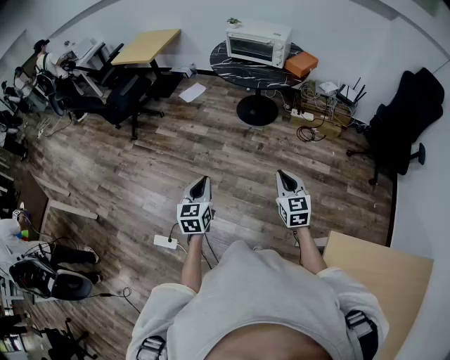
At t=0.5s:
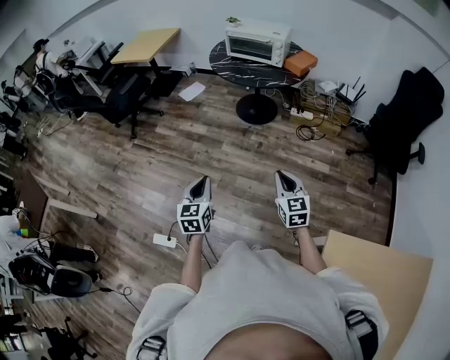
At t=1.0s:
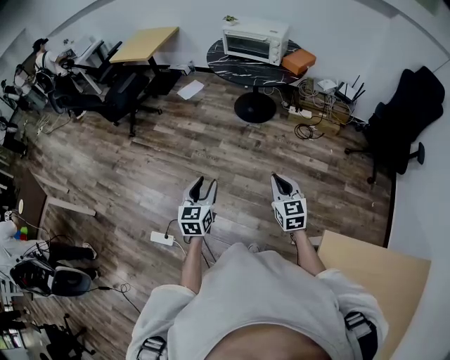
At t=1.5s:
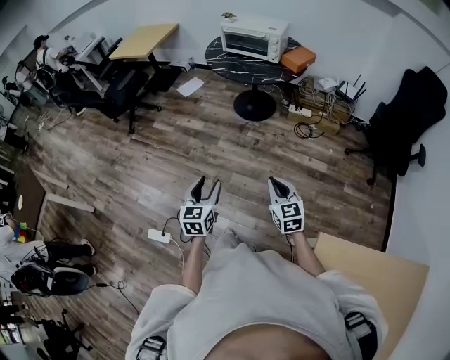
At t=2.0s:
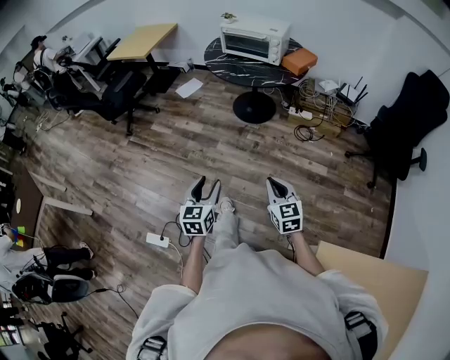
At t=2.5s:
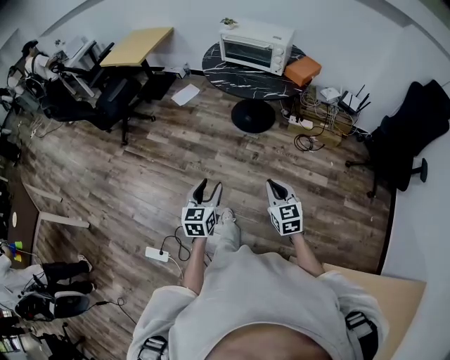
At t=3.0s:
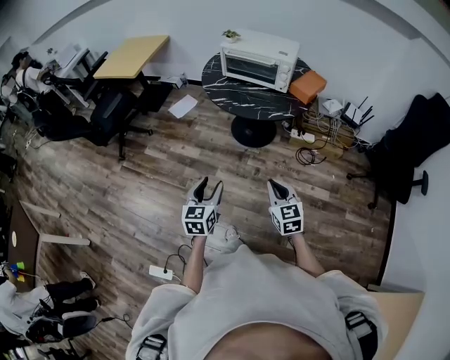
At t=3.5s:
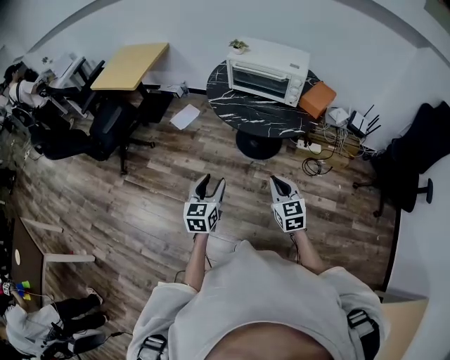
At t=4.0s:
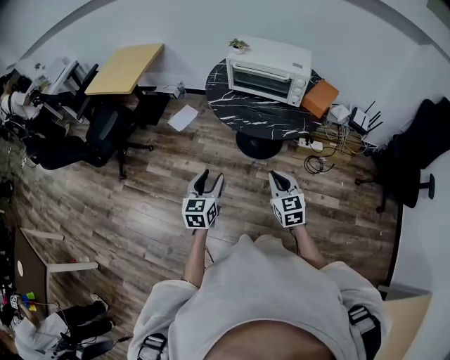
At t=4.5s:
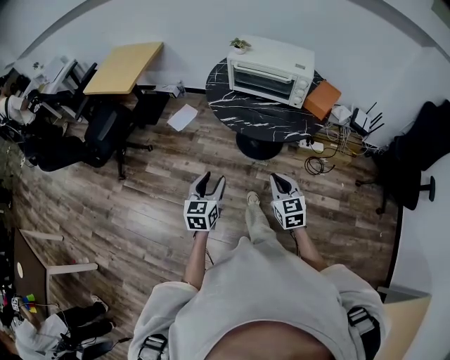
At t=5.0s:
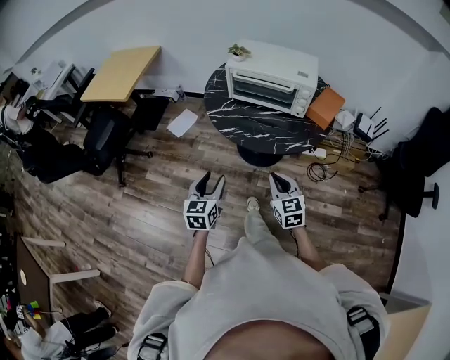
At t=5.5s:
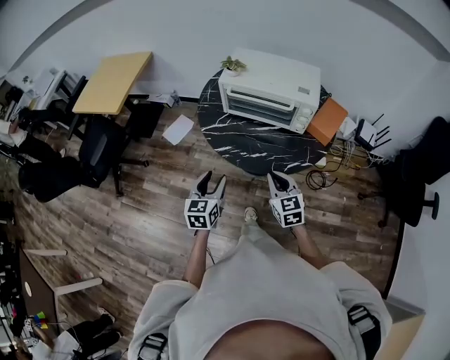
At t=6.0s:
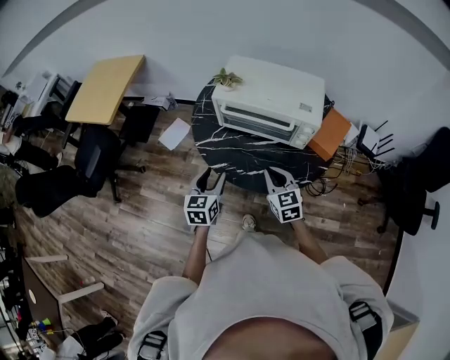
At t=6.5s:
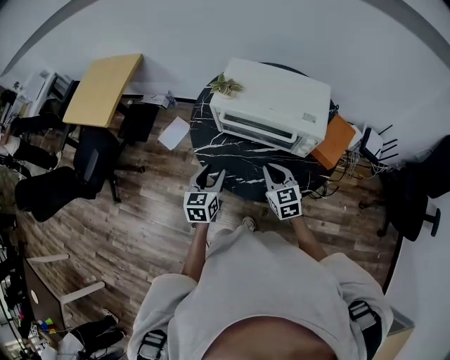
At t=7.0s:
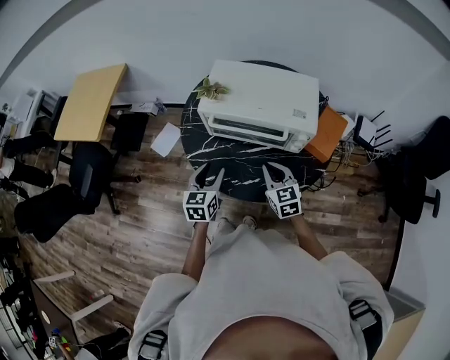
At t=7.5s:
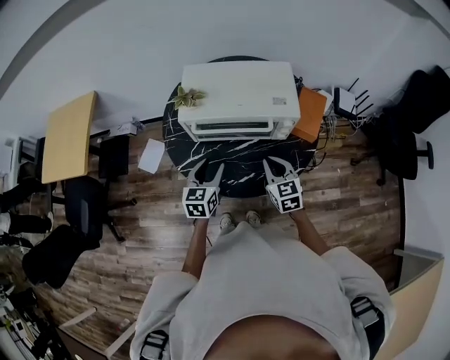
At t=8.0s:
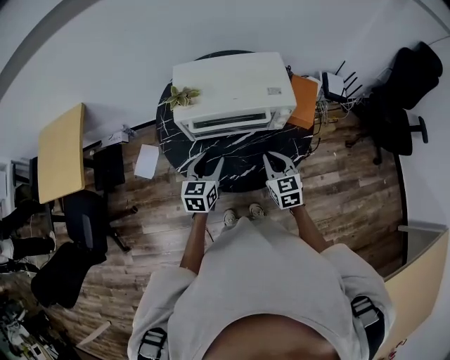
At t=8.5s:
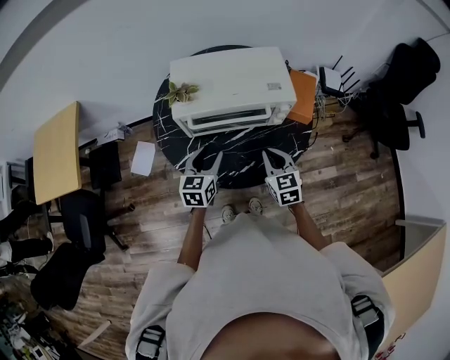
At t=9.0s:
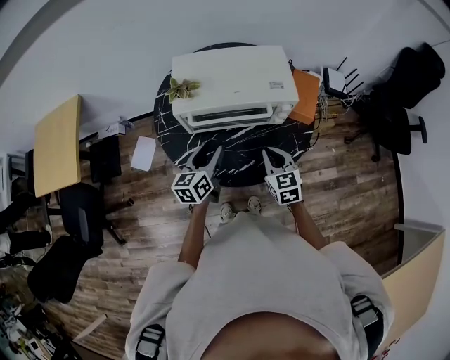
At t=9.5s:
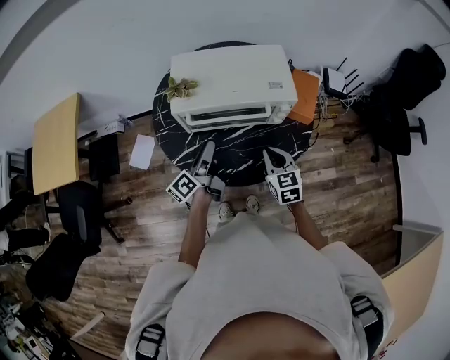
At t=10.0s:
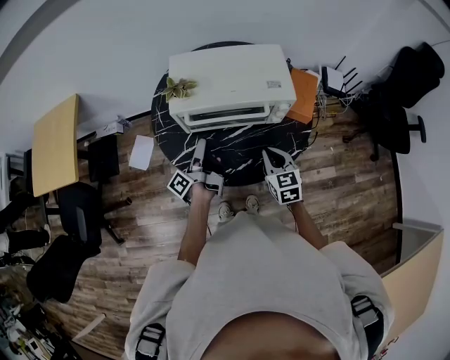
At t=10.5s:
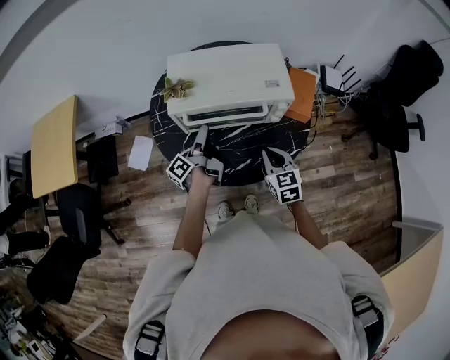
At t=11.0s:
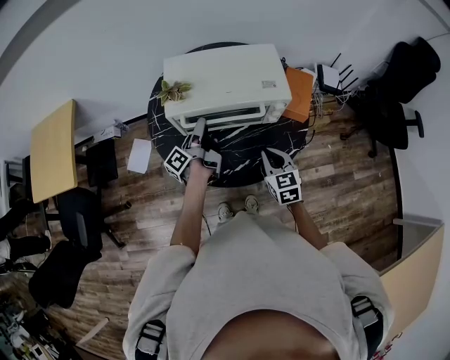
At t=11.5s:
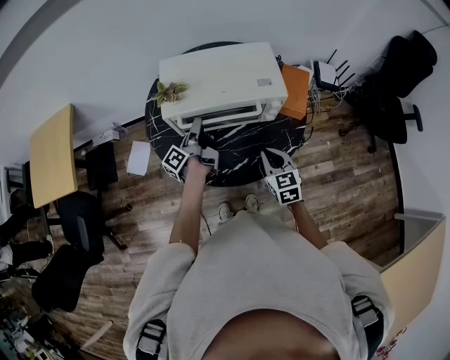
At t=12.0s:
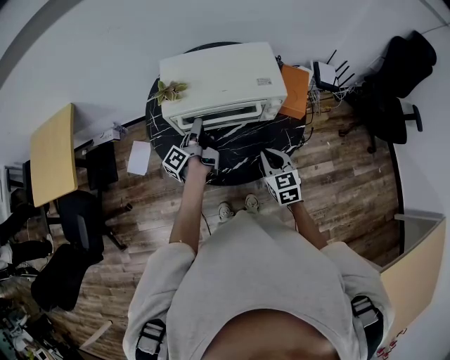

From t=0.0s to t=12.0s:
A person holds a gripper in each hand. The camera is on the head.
From t=0.0s to t=2.0s: The left gripper goes some 10 cm to the right, and opens its fingers. Meanwhile the right gripper shifts by some 5 cm.
From t=2.0s to t=4.0s: The pair of grippers is taken forward, about 40 cm.
From t=4.0s to t=6.0s: Both grippers travel together forward, about 30 cm.
From t=6.0s to t=8.0s: The right gripper ends up approximately 5 cm from where it was, and swivels approximately 30 degrees, while the left gripper changes place by approximately 15 cm, and turns by some 30 degrees.
From t=8.0s to t=10.0s: The left gripper twists roughly 80 degrees counterclockwise, seen from behind.
From t=10.0s to t=12.0s: The left gripper moves forward, about 5 cm, and closes.

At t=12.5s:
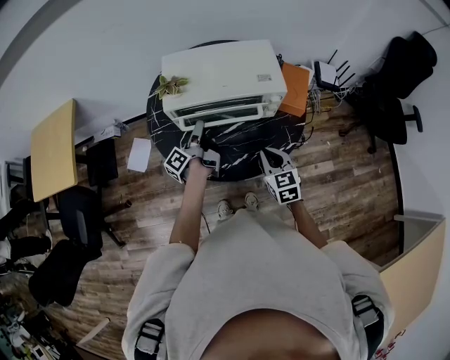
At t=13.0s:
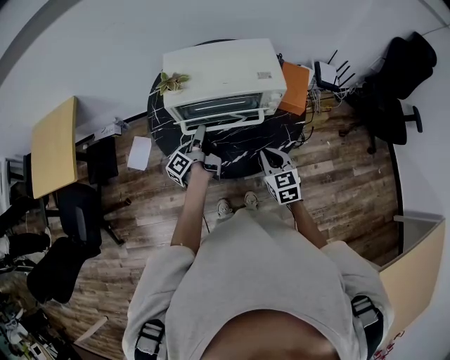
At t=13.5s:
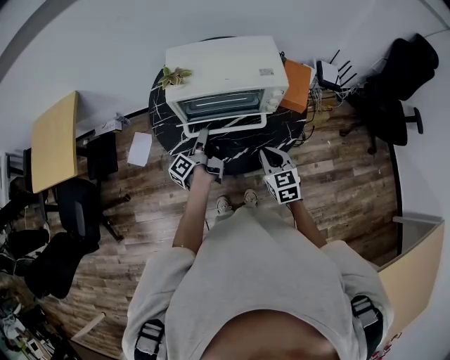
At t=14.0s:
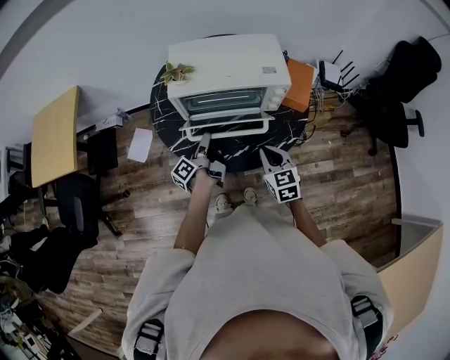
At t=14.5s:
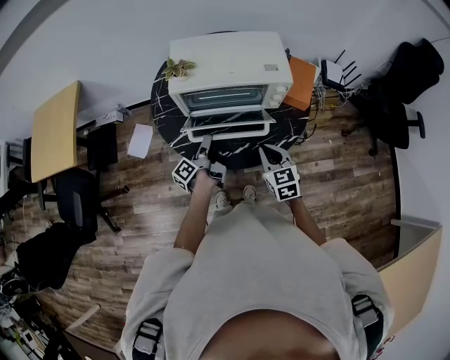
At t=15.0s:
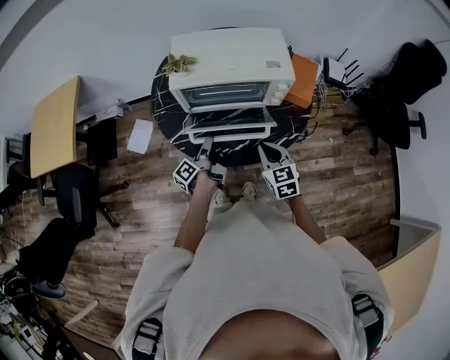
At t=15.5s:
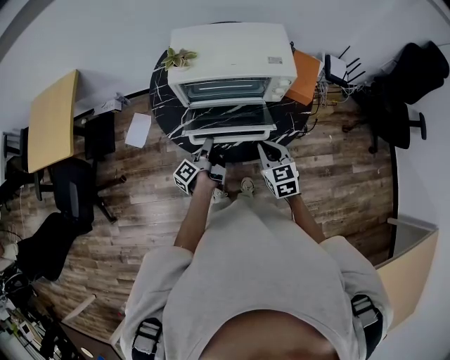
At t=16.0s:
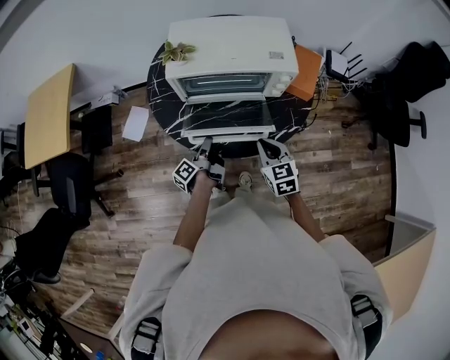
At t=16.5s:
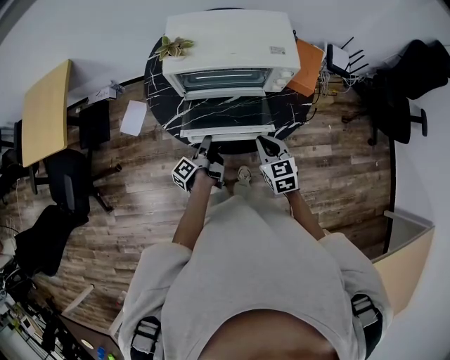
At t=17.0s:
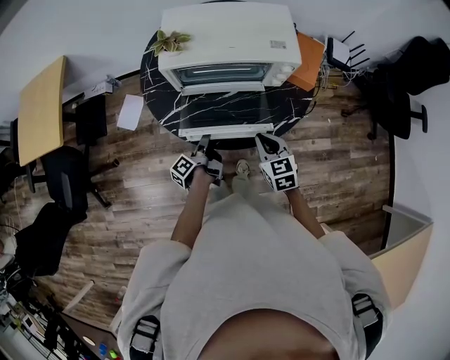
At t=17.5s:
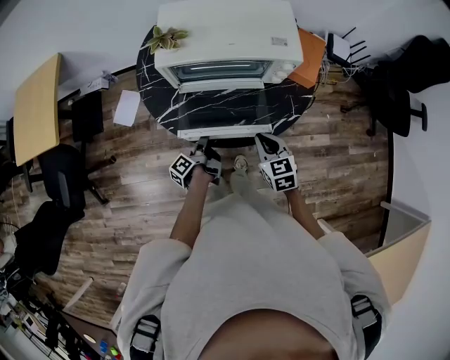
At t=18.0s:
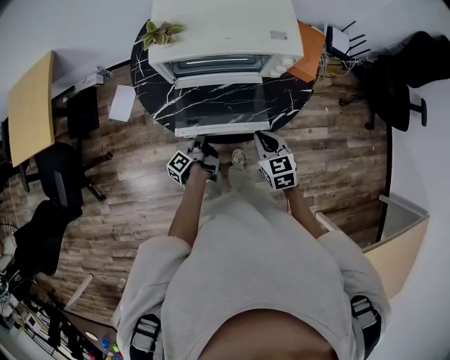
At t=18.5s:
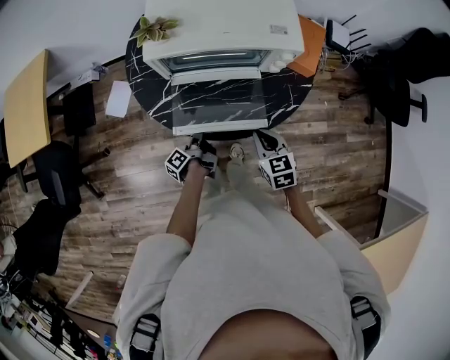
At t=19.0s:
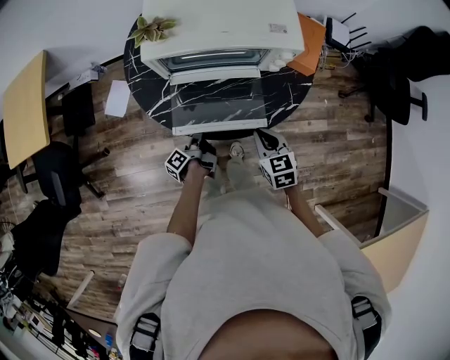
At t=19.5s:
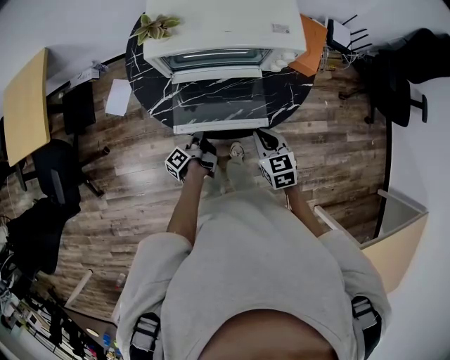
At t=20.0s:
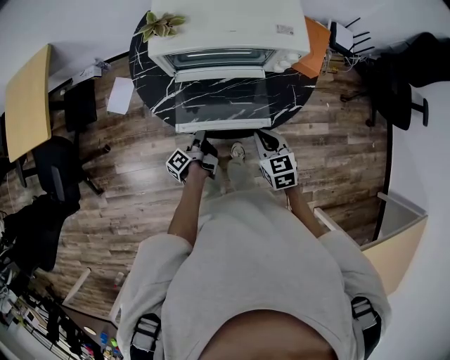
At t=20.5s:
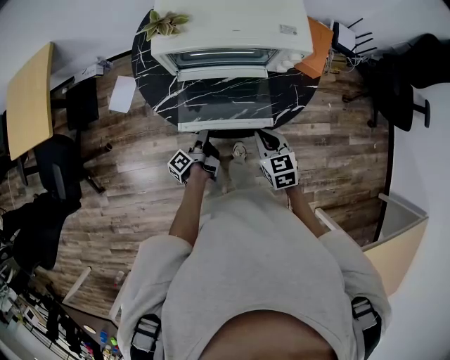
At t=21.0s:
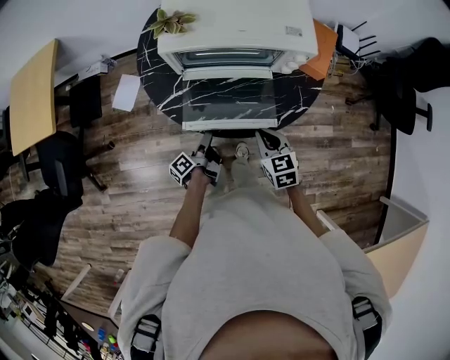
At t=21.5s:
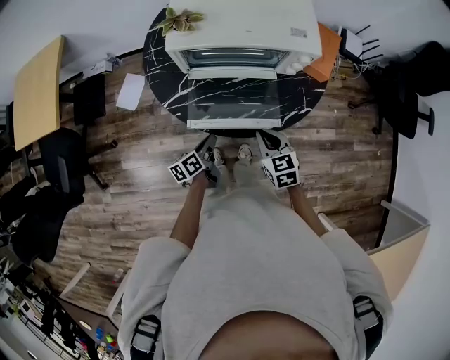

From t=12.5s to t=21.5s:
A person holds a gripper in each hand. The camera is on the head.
From t=12.5s to t=14.5s: The left gripper shifts about 10 cm backward and downward.
From t=14.5s to t=17.0s: The left gripper shifts approximately 10 cm downward and backward.
From t=17.0s to t=19.5s: The left gripper heads downward, covering about 5 cm.
From t=19.5s to t=21.5s: The left gripper rotates about 40 degrees.

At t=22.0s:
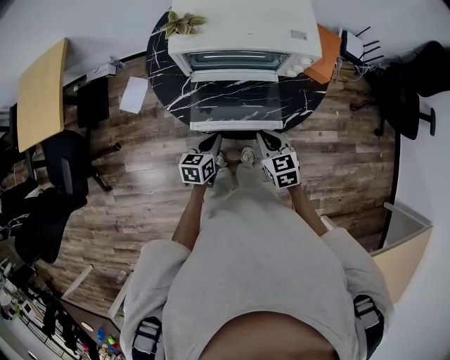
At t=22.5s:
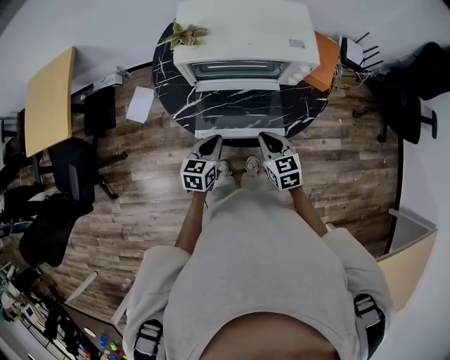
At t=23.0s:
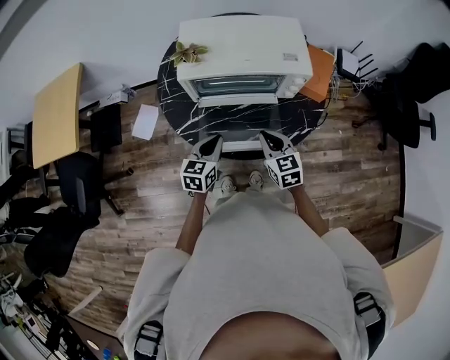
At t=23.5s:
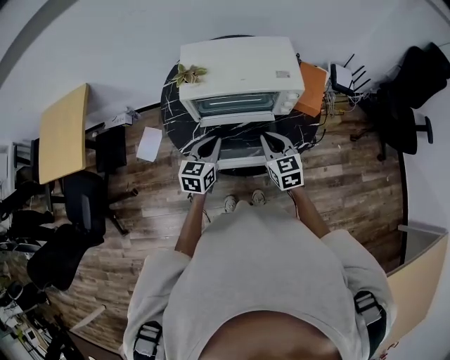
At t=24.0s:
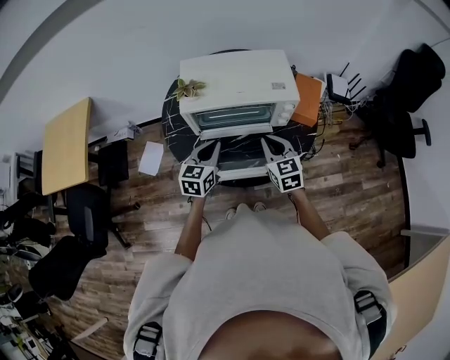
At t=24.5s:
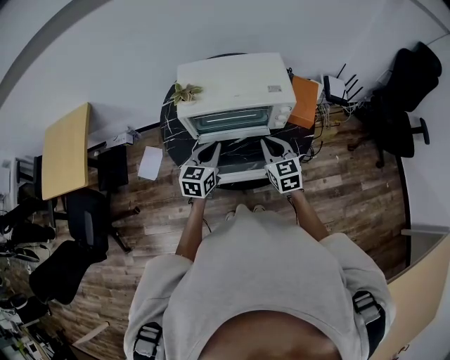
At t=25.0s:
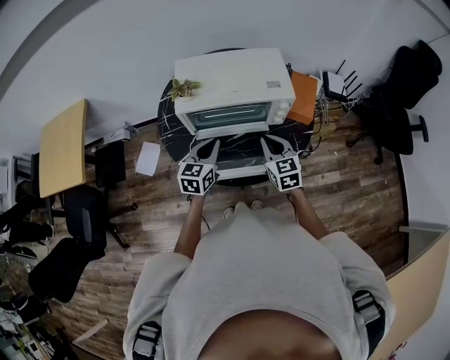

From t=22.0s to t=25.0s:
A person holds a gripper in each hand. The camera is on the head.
From t=22.0s to t=23.5s: Both grippers travel together upward and forward, about 15 cm. The left gripper rotates some 20 degrees.
From t=23.5s to t=25.0s: The grippers make only small movements.

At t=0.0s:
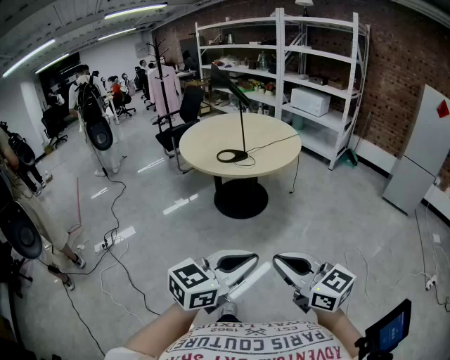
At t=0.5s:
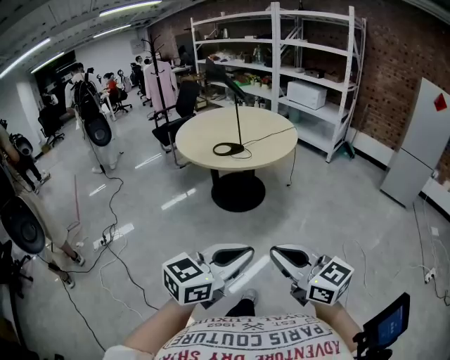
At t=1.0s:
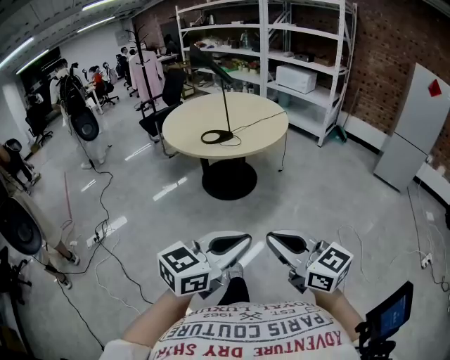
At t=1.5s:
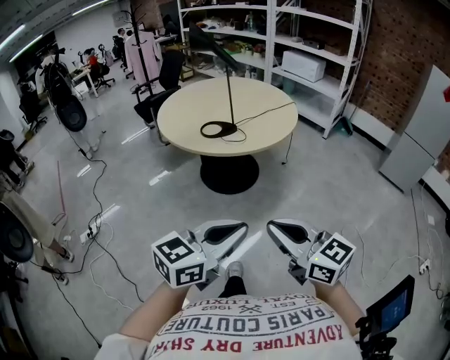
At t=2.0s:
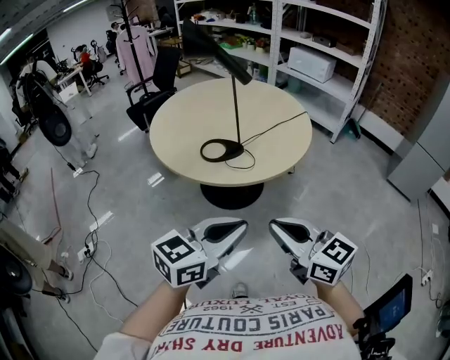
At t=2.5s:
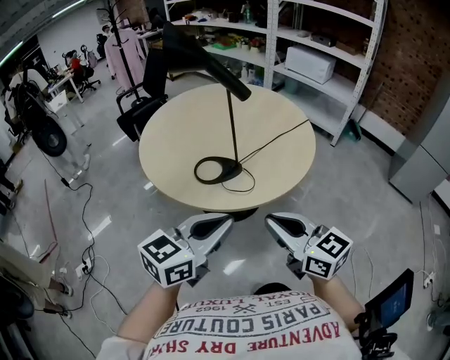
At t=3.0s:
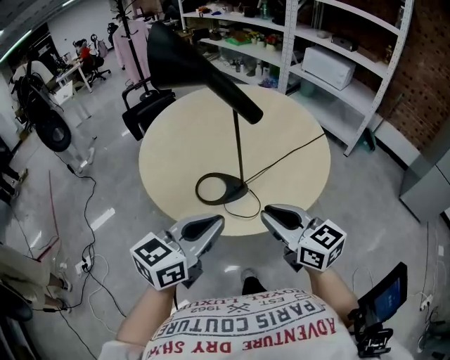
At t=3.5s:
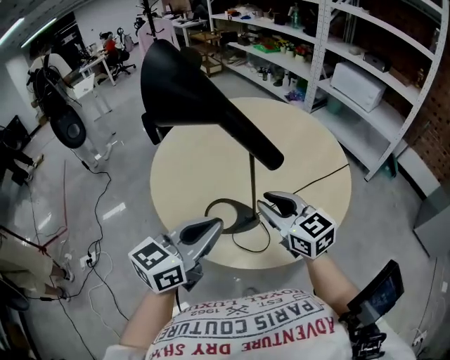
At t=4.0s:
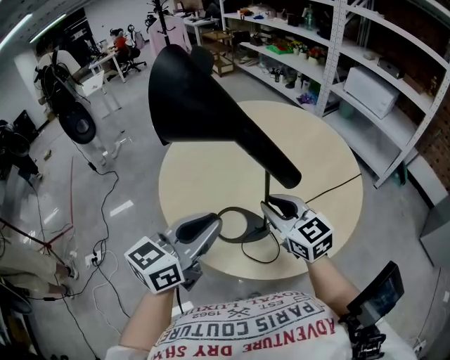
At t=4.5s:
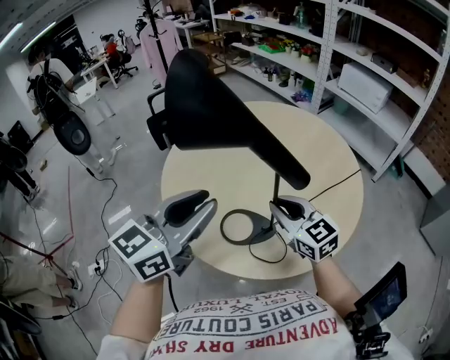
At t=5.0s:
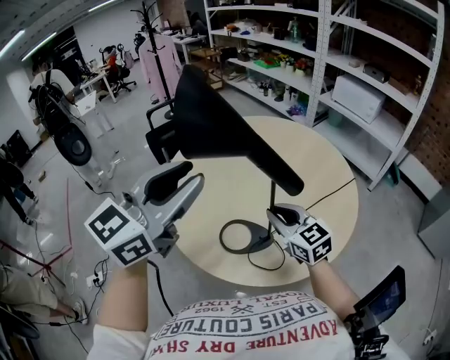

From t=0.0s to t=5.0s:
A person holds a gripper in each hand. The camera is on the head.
From t=0.0s to t=2.5s: Both grippers are carried forward, about 50 cm.
From t=2.5s to t=5.0s: The right gripper goes about 35 cm forward. The left gripper moves forward and upward, about 35 cm, swivels some 30 degrees, and opens its fingers.
